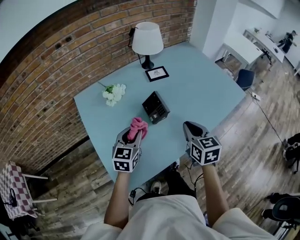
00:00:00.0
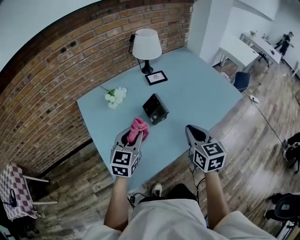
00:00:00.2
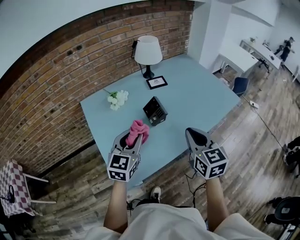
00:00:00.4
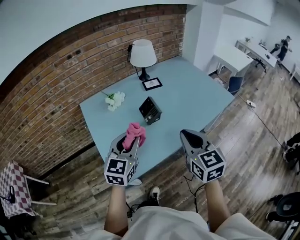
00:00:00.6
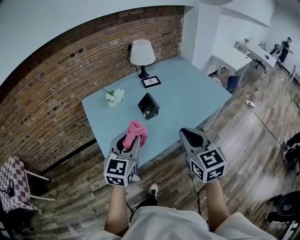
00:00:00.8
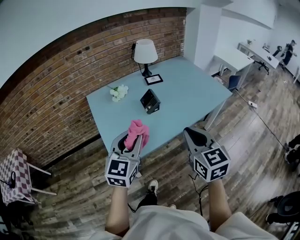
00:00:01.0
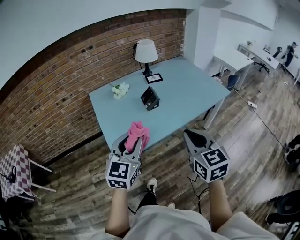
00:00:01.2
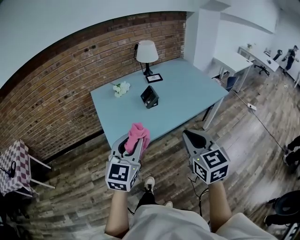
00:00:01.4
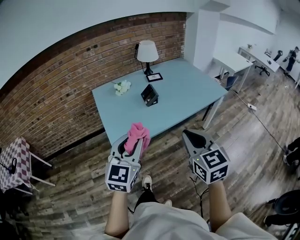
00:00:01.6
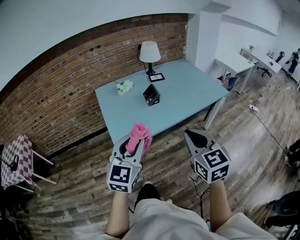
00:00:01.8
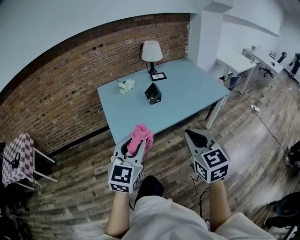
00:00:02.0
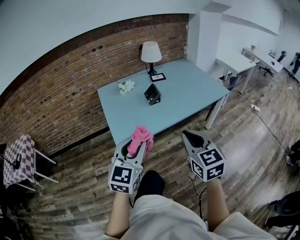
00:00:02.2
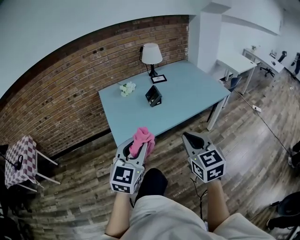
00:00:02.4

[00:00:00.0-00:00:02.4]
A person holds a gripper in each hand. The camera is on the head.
00:00:00.0 to 00:00:01.2: The grippers both shift backward and upward by about 35 cm.
00:00:01.2 to 00:00:02.4: The two grippers go roughly 10 cm backward.

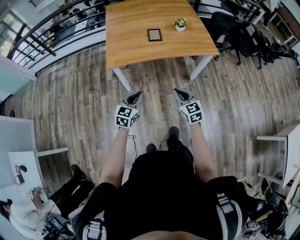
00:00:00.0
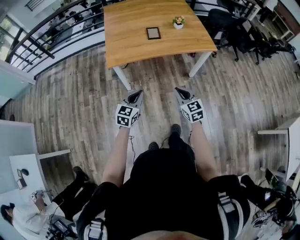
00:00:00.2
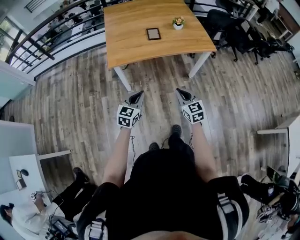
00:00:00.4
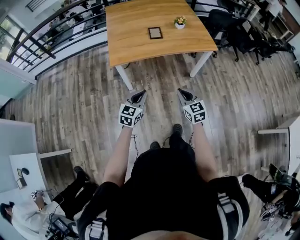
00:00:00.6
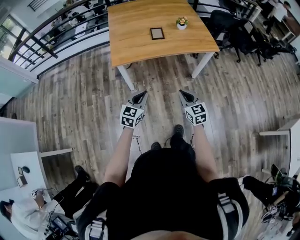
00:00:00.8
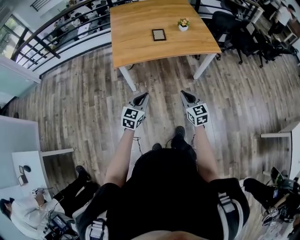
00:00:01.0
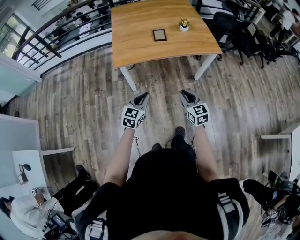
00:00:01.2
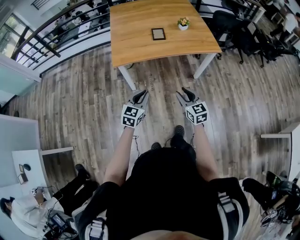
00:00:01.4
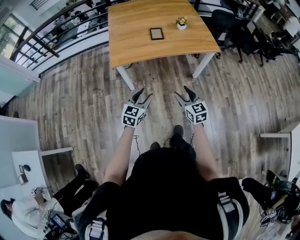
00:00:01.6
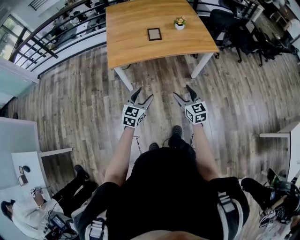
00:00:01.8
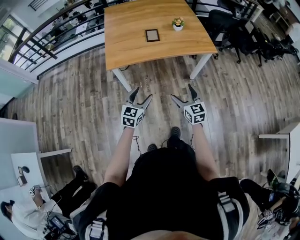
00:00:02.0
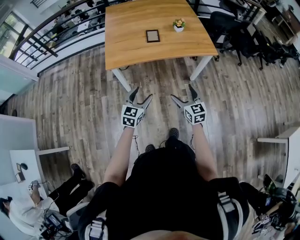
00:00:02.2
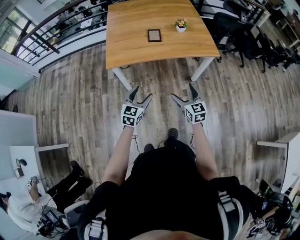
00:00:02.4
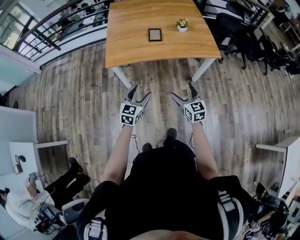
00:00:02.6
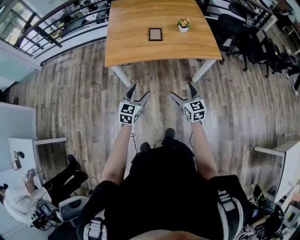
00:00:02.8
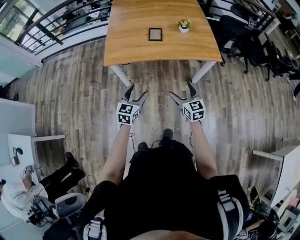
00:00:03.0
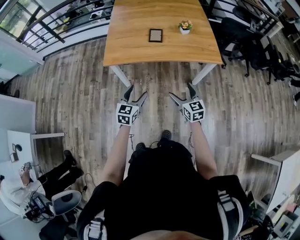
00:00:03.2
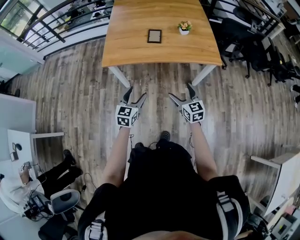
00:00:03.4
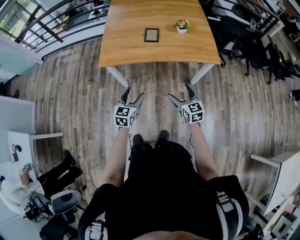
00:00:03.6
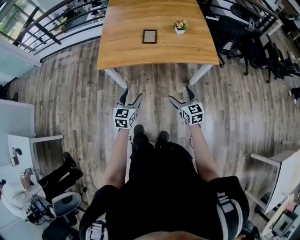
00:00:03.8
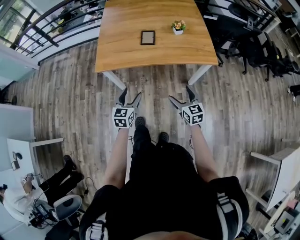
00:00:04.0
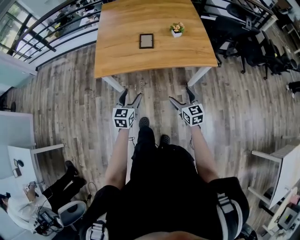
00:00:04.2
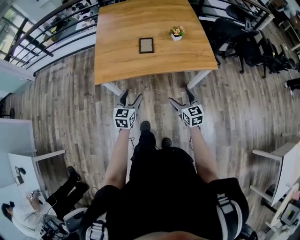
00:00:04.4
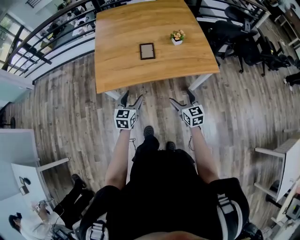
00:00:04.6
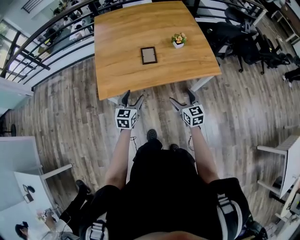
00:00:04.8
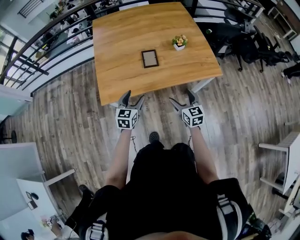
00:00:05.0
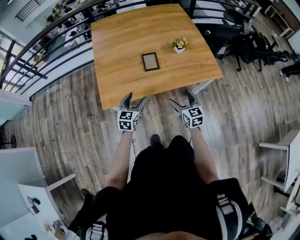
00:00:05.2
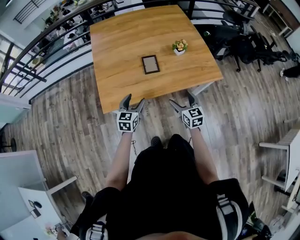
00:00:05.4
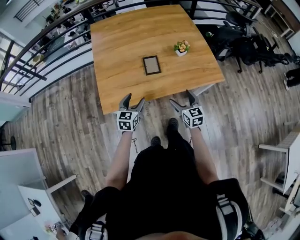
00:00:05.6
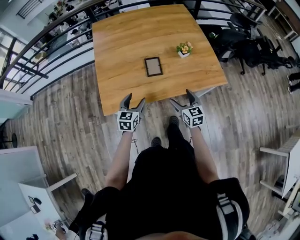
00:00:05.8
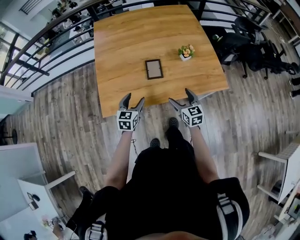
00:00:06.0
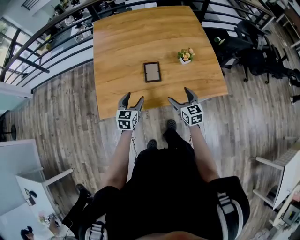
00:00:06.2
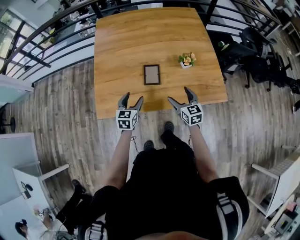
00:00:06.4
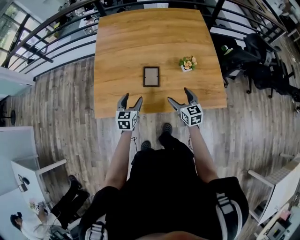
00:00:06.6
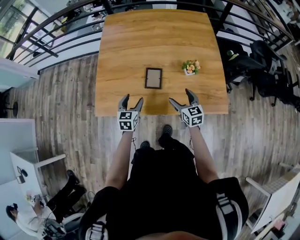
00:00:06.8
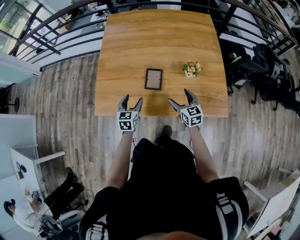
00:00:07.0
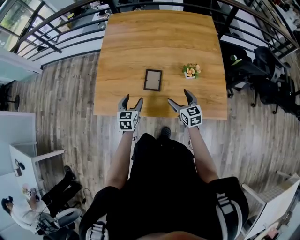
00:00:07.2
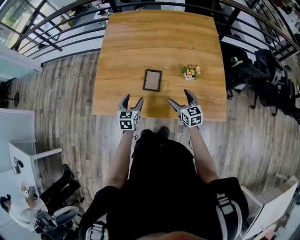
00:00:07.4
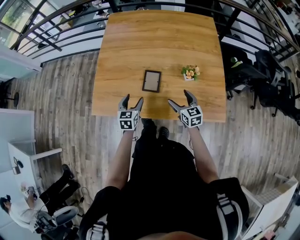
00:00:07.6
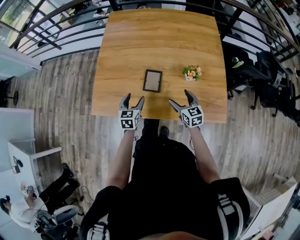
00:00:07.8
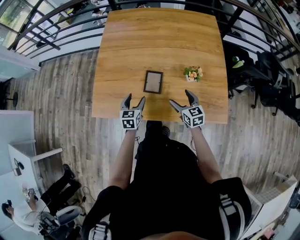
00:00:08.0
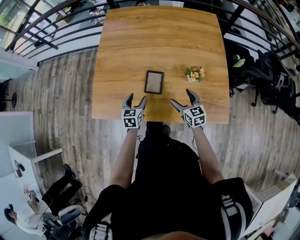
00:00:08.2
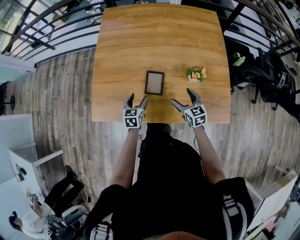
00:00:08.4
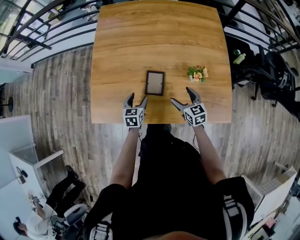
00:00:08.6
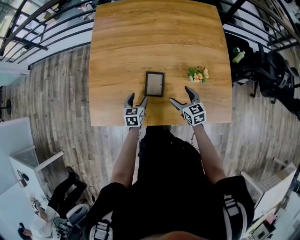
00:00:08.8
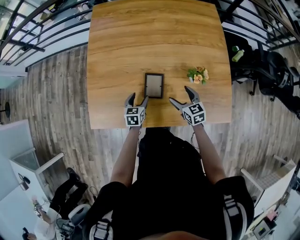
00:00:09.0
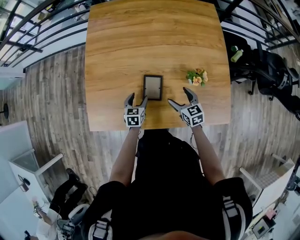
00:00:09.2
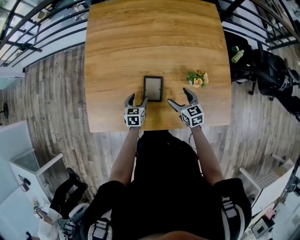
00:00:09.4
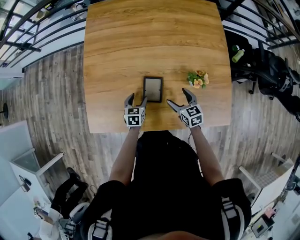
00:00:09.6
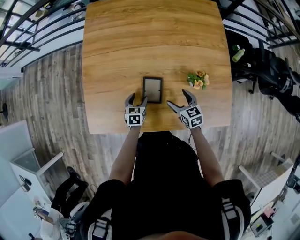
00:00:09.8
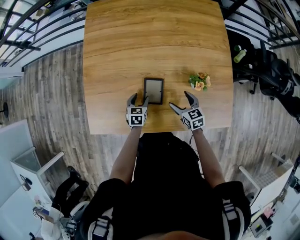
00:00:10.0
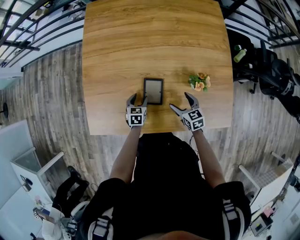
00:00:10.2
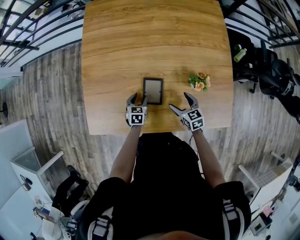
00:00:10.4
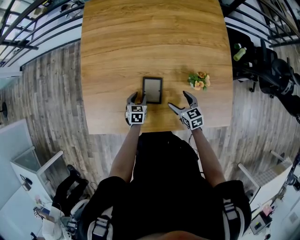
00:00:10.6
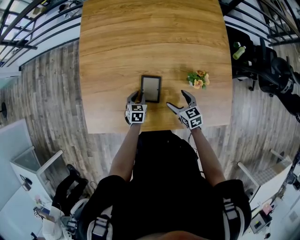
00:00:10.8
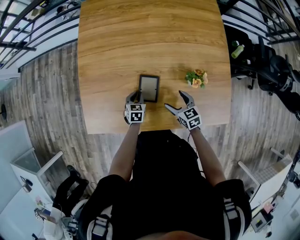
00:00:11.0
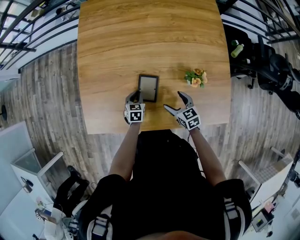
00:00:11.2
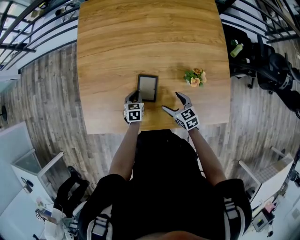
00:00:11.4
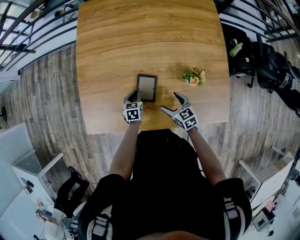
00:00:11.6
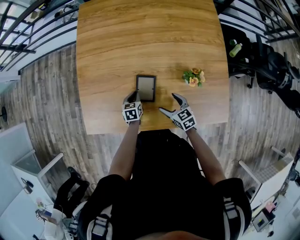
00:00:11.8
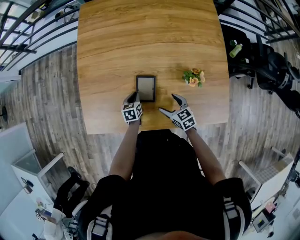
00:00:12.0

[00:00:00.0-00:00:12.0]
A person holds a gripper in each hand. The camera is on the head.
00:00:00.0 to 00:00:01.6: The left gripper opens its fingers. Meanwhile the right gripper opens its fingers.
00:00:01.6 to 00:00:03.0: The grippers both shift forward and to the right by about 10 cm. The left gripper opens its fingers; the right gripper opens up.
00:00:03.0 to 00:00:04.4: The two grippers go about 10 cm forward.
00:00:04.4 to 00:00:06.0: Both grippers move forward, some 20 cm.
00:00:06.0 to 00:00:07.6: The right gripper is displaced forward and to the right by roughly 15 cm, while the left gripper travels to the right and forward by approximately 10 cm, and swivels roughly 20 degrees.
00:00:07.6 to 00:00:09.0: The right gripper moves forward and downward, about 10 cm; the left gripper heads downward and forward, covering approximately 15 cm.
00:00:09.0 to 00:00:10.4: The left gripper travels downward by about 5 cm.
00:00:10.4 to 00:00:12.0: The left gripper closes up.

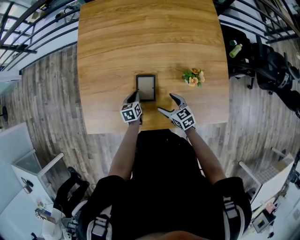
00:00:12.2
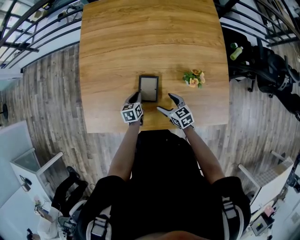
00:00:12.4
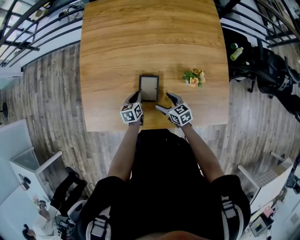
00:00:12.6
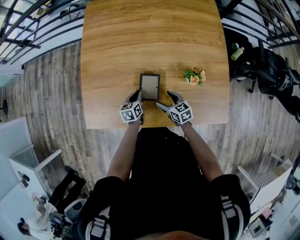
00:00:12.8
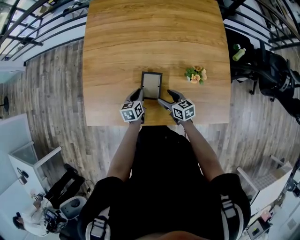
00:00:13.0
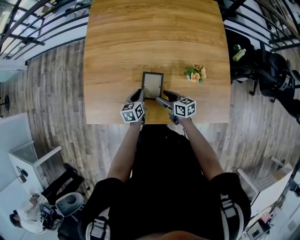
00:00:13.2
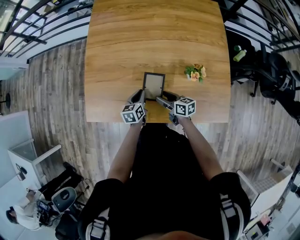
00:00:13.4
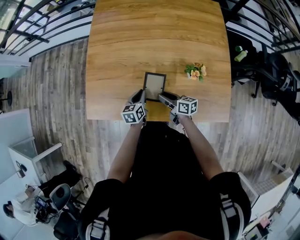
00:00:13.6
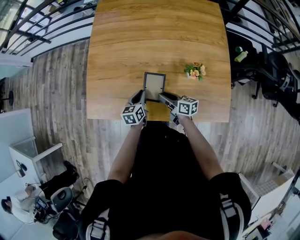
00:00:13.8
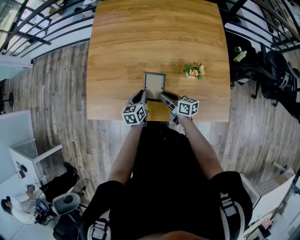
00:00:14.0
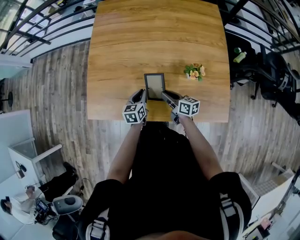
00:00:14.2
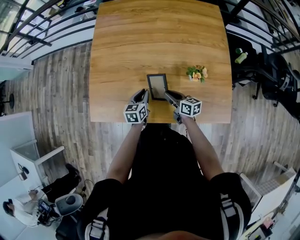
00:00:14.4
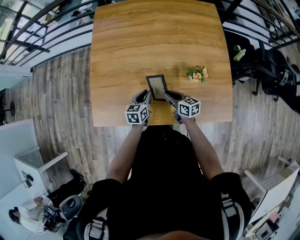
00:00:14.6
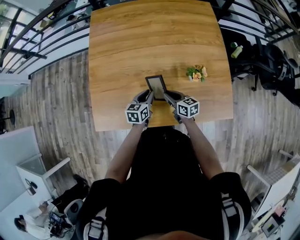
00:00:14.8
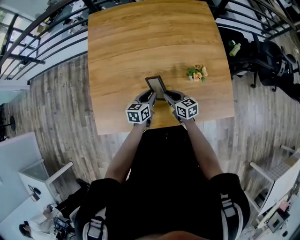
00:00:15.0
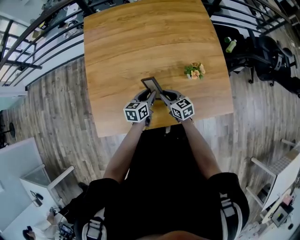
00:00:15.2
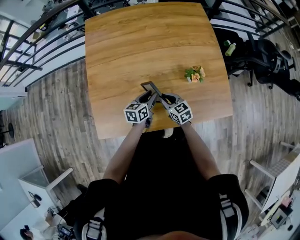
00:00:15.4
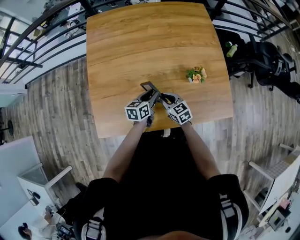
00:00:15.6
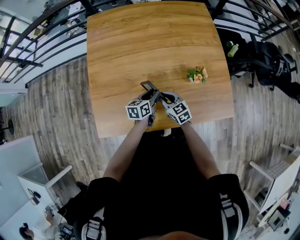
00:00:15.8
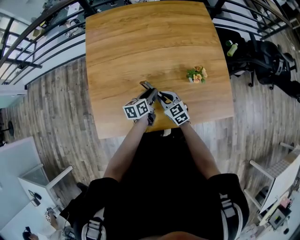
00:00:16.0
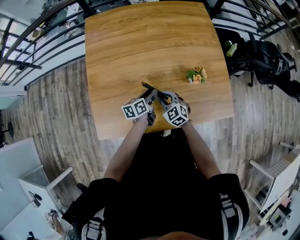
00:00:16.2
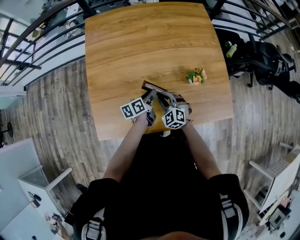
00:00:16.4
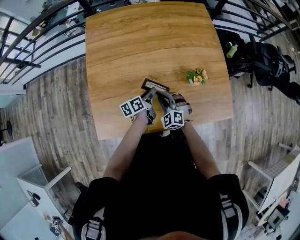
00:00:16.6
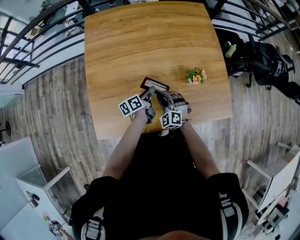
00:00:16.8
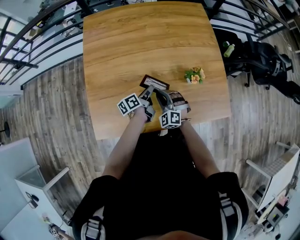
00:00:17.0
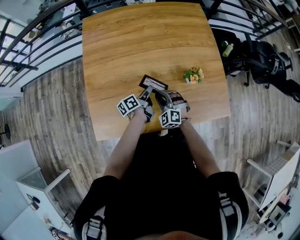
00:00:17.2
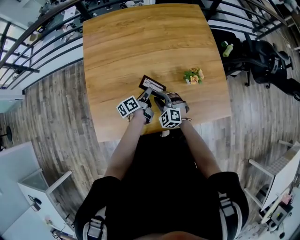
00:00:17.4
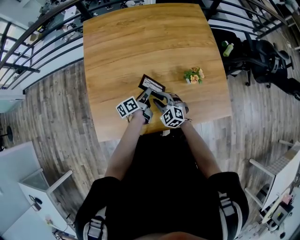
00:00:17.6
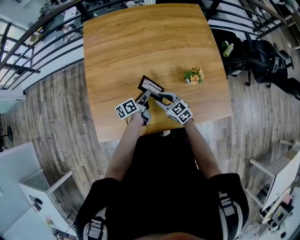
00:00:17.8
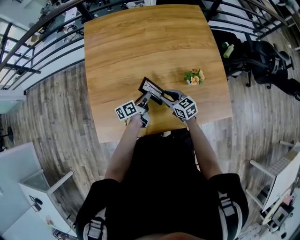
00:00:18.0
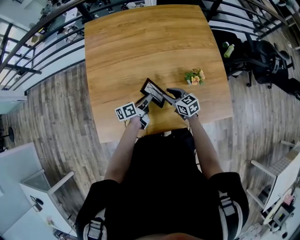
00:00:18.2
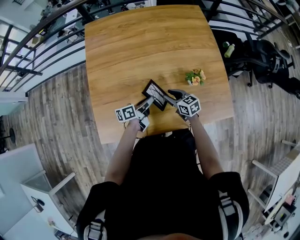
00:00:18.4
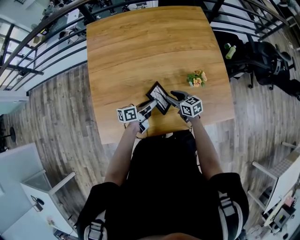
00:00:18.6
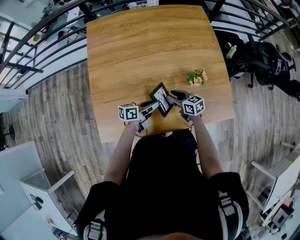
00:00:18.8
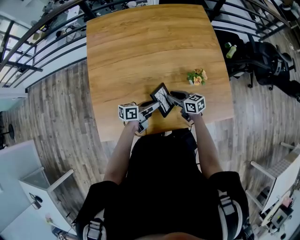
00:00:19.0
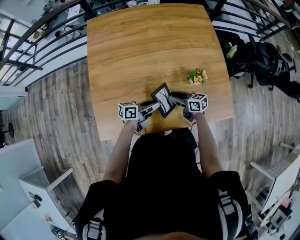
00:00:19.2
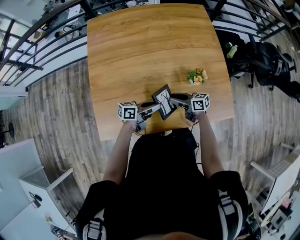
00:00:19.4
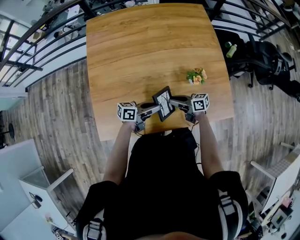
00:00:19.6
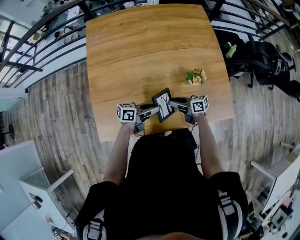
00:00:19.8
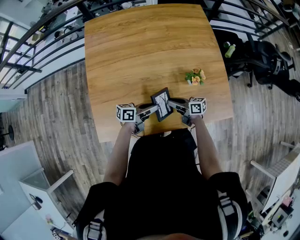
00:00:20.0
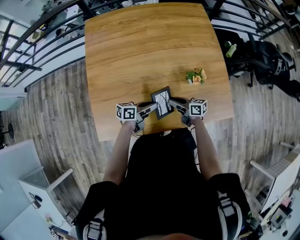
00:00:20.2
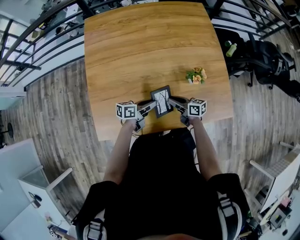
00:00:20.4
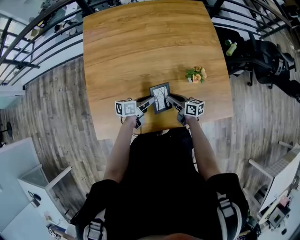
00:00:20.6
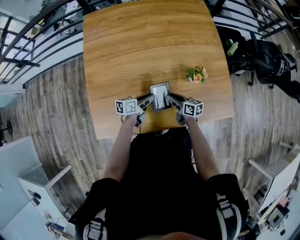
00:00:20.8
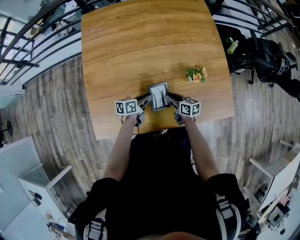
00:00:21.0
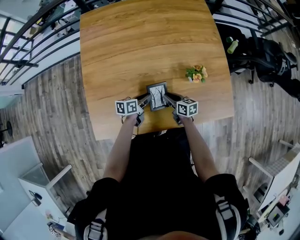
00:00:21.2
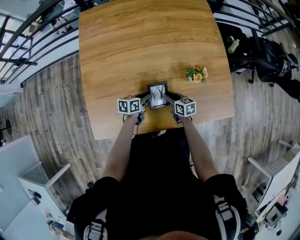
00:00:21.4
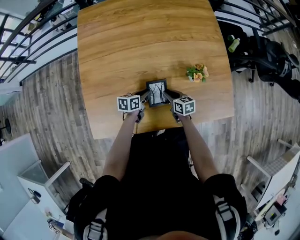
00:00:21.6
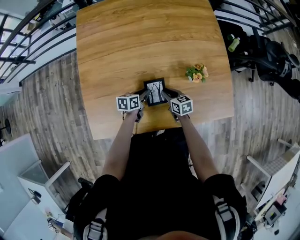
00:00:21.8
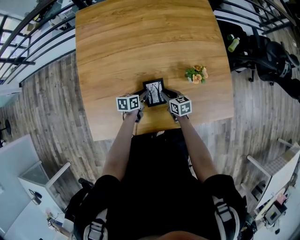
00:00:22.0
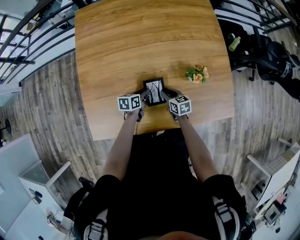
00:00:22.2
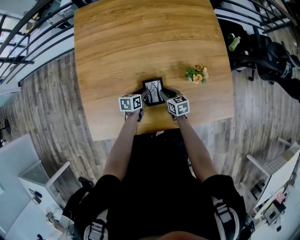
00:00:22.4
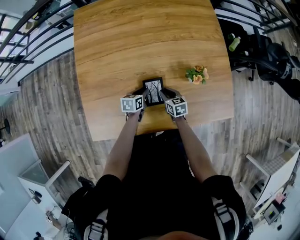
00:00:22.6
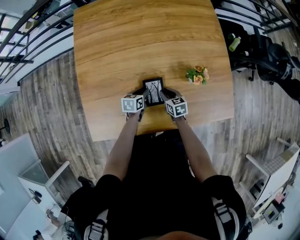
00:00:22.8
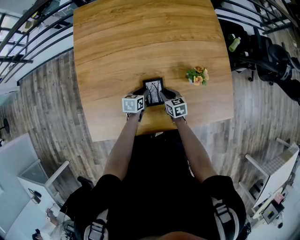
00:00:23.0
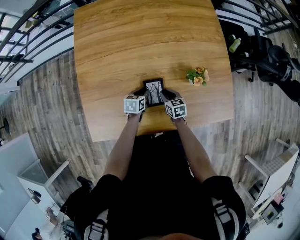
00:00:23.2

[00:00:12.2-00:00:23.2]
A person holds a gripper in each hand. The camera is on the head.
00:00:12.2 to 00:00:13.8: The left gripper is displaced upward and backward by some 10 cm. The right gripper changes its angle by roughly 40 degrees, and closes its fingers.
00:00:13.8 to 00:00:15.4: The left gripper moves approximately 5 cm, and rotates some 20 degrees; the right gripper moves some 5 cm, and rotates roughly 40 degrees.
00:00:15.4 to 00:00:17.0: The left gripper rotates some 40 degrees, while the right gripper rolls counterclockwise, seen from behind, by roughly 60 degrees.
00:00:17.0 to 00:00:18.4: The right gripper shifts some 5 cm to the right, and rotates around the line of its fingers by about 60 degrees, clockwise from behind.
00:00:18.4 to 00:00:20.0: The right gripper rotates approximately 40 degrees; the left gripper ends up about 5 cm from where it was, and changes its angle by about 20 degrees.
00:00:20.0 to 00:00:21.6: The right gripper shifts some 10 cm downward, and changes its angle by roughly 30 degrees; the left gripper shifts roughly 10 cm downward, and changes its angle by roughly 30 degrees.
00:00:21.6 to 00:00:23.2: The grippers move only a little.
